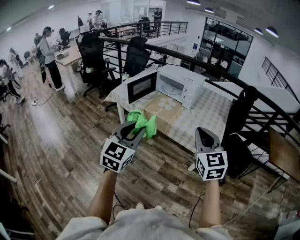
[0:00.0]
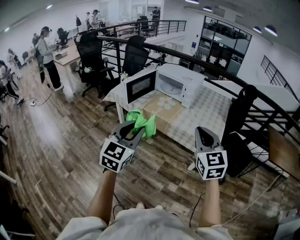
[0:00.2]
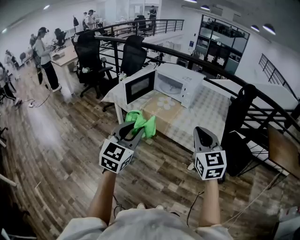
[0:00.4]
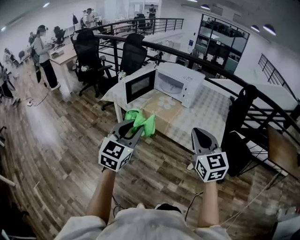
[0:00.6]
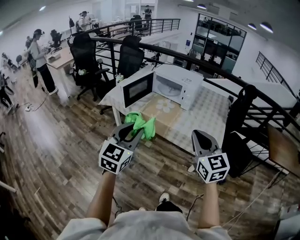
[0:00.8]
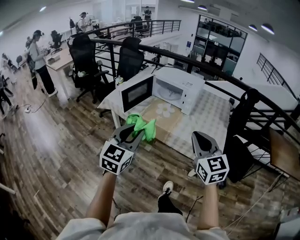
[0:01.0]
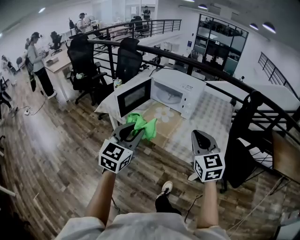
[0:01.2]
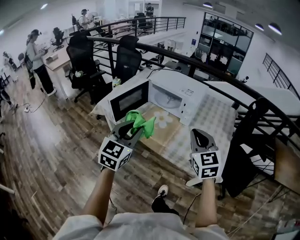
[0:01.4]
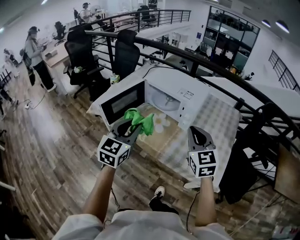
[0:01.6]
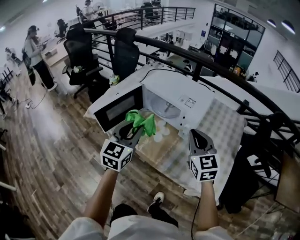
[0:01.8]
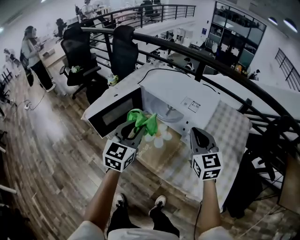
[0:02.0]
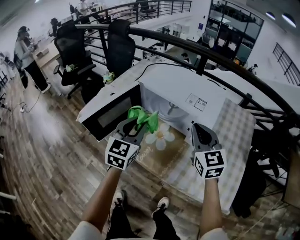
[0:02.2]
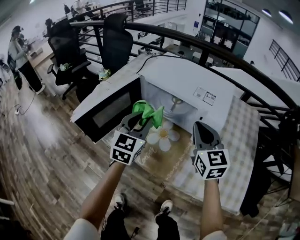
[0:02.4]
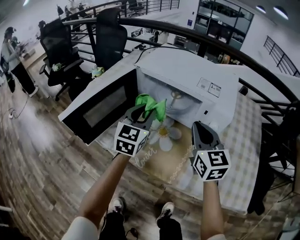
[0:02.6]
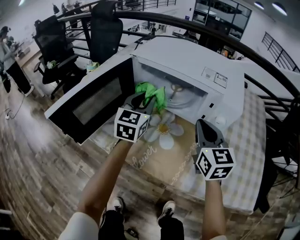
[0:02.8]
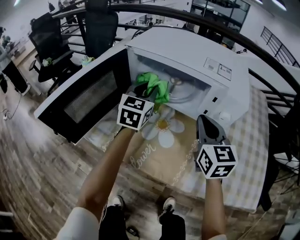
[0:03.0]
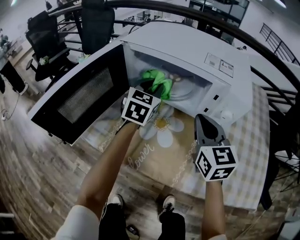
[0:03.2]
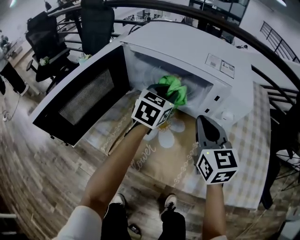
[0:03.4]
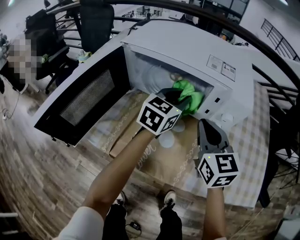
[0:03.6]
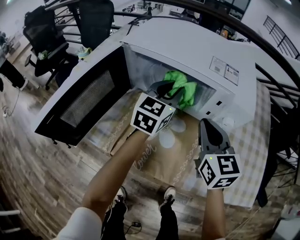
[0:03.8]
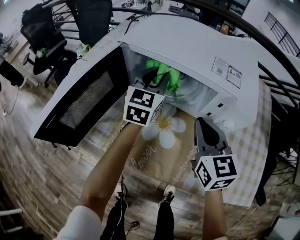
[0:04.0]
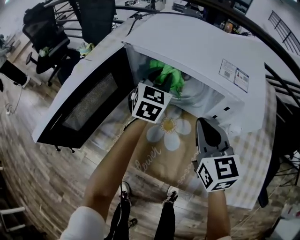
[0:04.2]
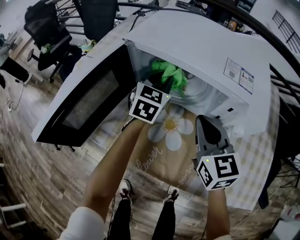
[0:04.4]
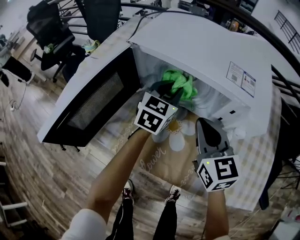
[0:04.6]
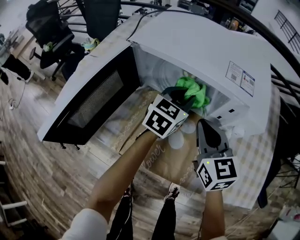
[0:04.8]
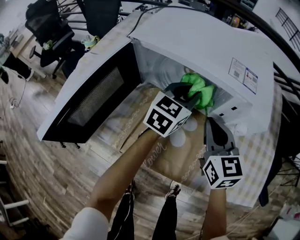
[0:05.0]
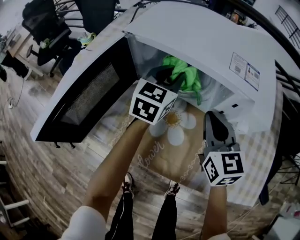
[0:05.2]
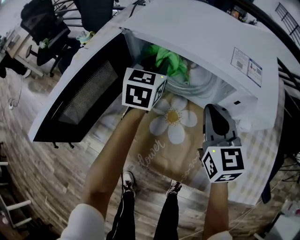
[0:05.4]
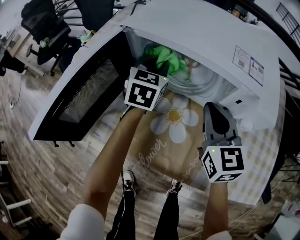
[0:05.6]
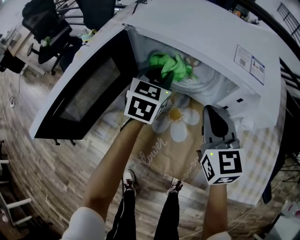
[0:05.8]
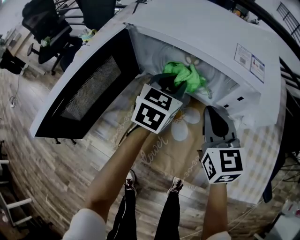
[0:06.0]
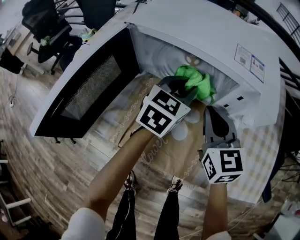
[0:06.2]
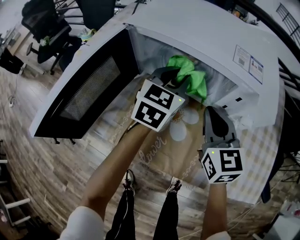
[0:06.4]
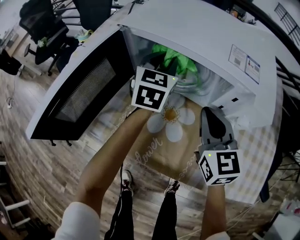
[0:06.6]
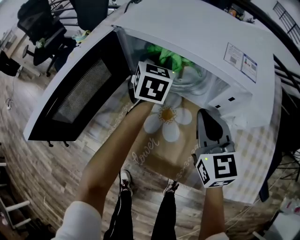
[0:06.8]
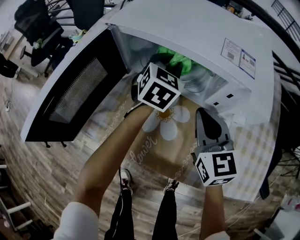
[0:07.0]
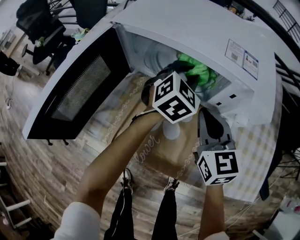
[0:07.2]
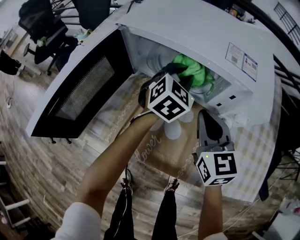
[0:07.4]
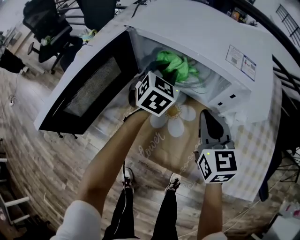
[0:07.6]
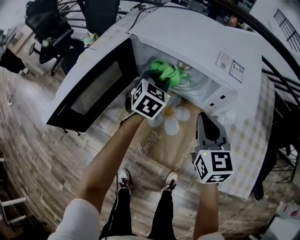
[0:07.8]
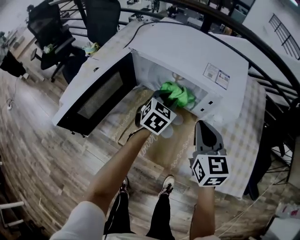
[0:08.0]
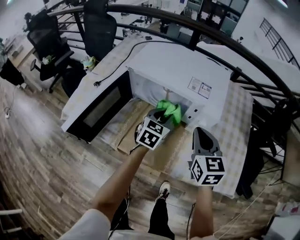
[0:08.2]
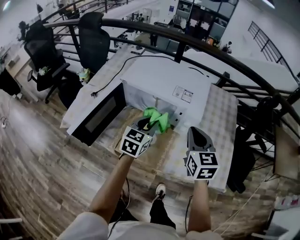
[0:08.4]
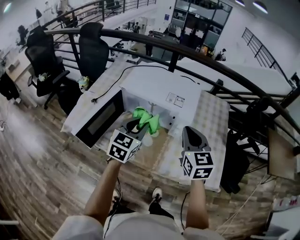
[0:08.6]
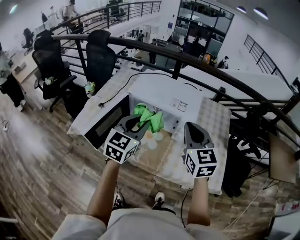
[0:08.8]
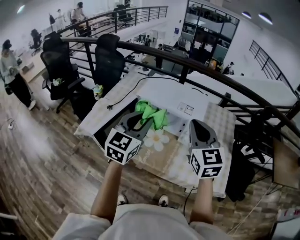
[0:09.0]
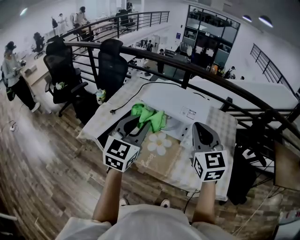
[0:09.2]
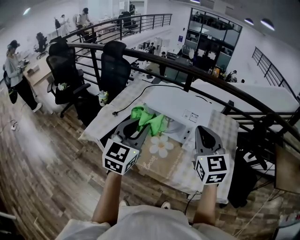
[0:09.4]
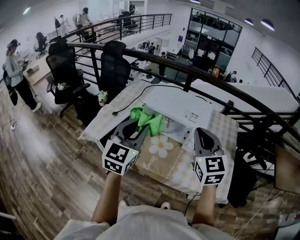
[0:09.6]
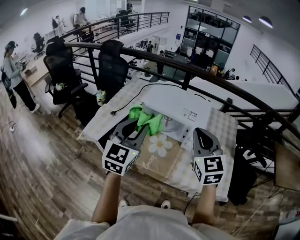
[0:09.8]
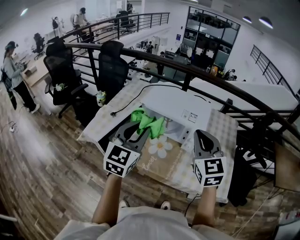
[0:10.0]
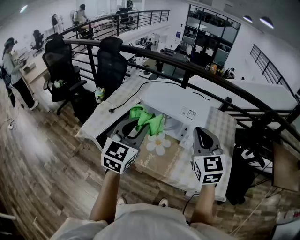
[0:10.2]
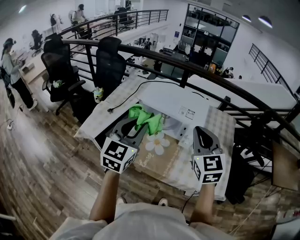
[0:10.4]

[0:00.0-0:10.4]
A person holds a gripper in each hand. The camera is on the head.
0:00.0 to 0:01.4: The grippers both shift forward by some 30 cm.
0:01.4 to 0:03.0: Both grippers travel together forward and downward, about 50 cm.
0:03.0 to 0:04.4: The right gripper travels to the left by approximately 5 cm; the left gripper travels forward by approximately 5 cm, and reaches roughly 15 cm to the right, then returns.
0:04.4 to 0:06.0: The left gripper moves left and right over roughly 10 cm, changing direction 2 times.
0:06.0 to 0:07.4: The left gripper turns by roughly 20 degrees.
0:07.4 to 0:09.0: The two grippers go about 40 cm upward and backward. The left gripper changes its angle by approximately 30 degrees.
0:09.0 to 0:10.4: There are only small adjustments of the grippers.

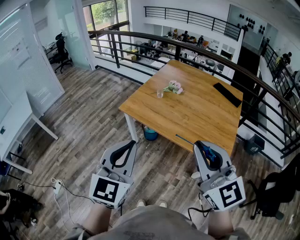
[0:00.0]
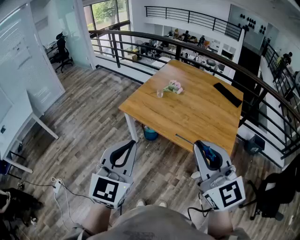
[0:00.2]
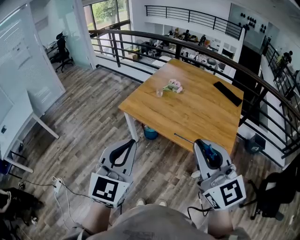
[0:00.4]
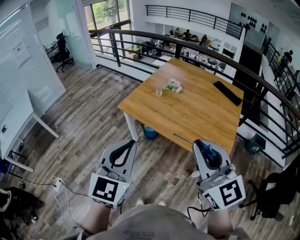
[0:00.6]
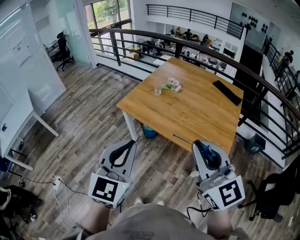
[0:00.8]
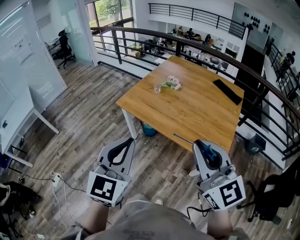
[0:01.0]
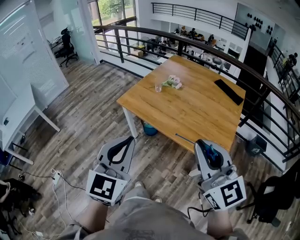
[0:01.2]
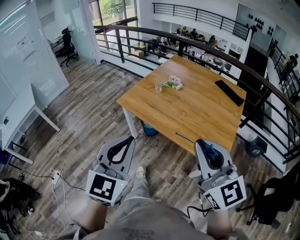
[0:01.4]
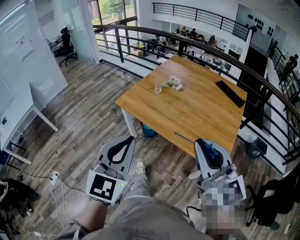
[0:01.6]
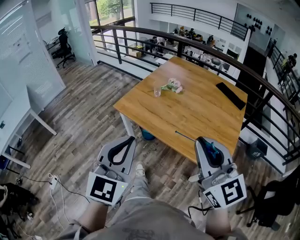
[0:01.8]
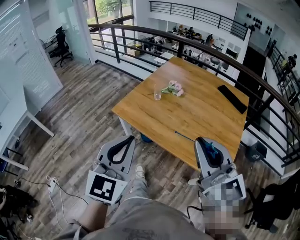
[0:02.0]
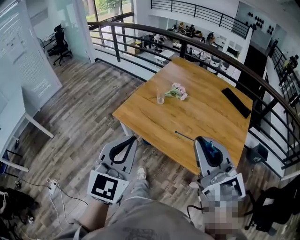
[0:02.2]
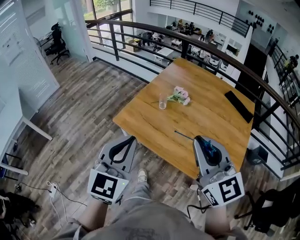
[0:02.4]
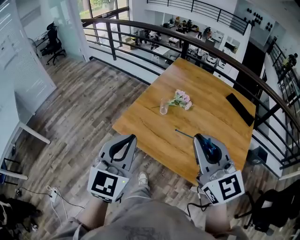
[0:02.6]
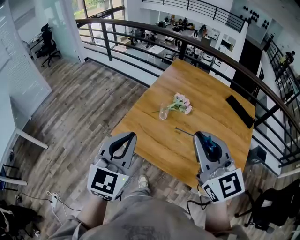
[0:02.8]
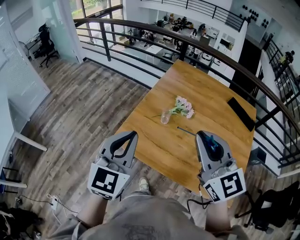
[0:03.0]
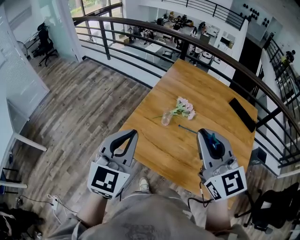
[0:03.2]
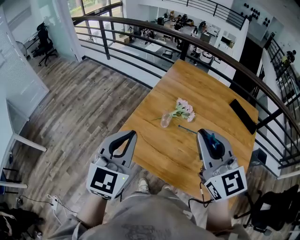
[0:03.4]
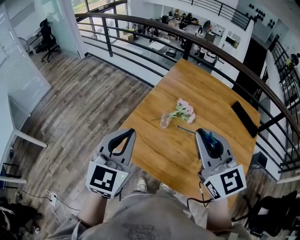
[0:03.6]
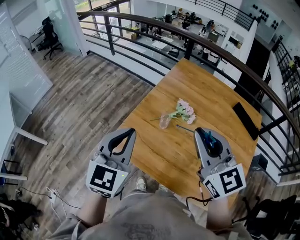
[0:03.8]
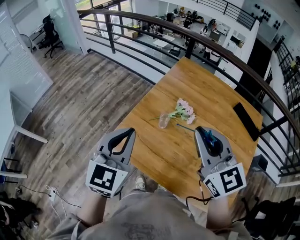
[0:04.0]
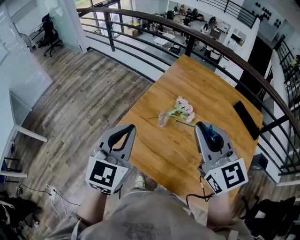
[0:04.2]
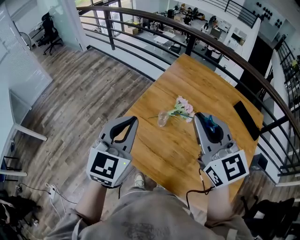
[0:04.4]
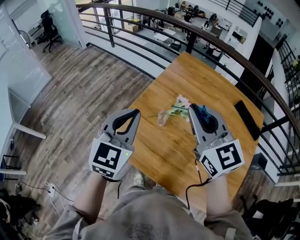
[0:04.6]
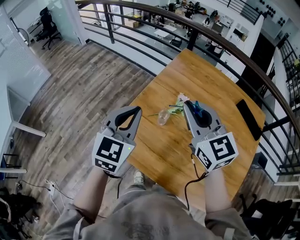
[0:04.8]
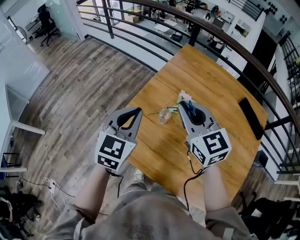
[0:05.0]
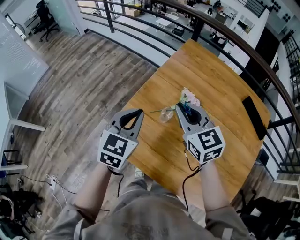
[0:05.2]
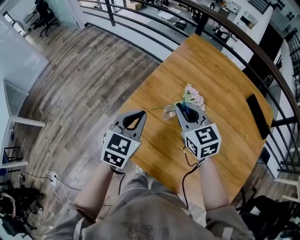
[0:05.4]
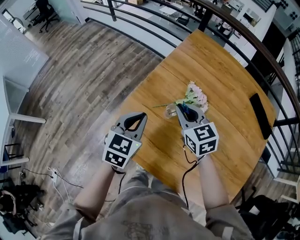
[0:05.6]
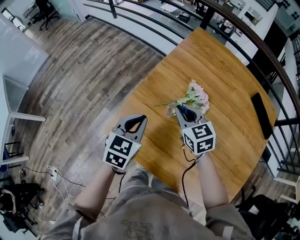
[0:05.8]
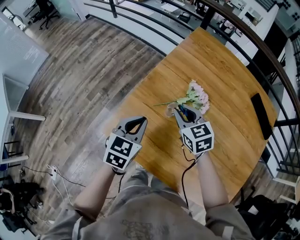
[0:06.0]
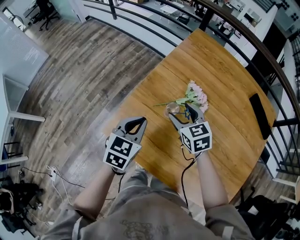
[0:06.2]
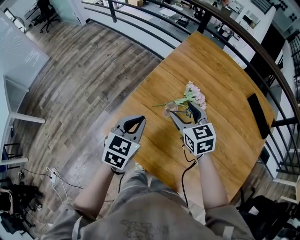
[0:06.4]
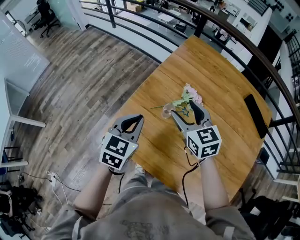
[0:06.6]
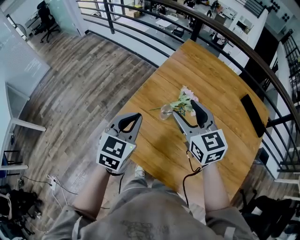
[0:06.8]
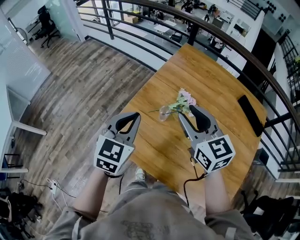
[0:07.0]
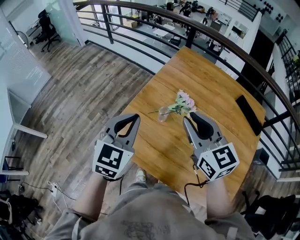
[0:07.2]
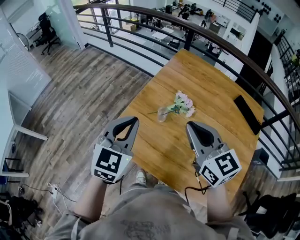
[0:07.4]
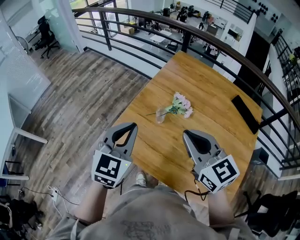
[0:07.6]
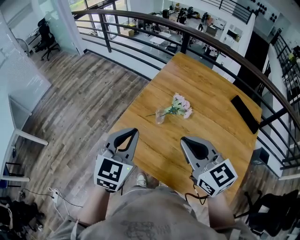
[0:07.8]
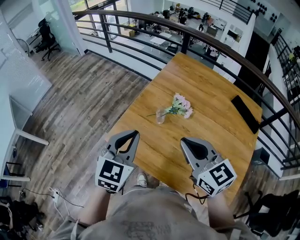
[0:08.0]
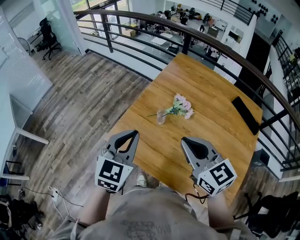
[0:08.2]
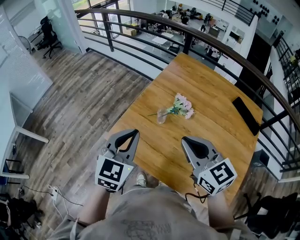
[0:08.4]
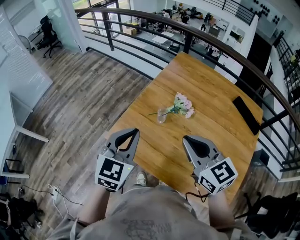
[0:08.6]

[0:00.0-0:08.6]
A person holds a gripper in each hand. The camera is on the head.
0:00.0 to 0:01.4: Both grippers travel together to the right, some 5 cm.
0:01.4 to 0:02.8: The two grippers go some 35 cm forward.
0:02.8 to 0:04.4: The grippers both shift forward by approximately 15 cm.
0:04.4 to 0:05.8: The right gripper goes approximately 30 cm downward and forward, and swivels about 30 degrees, while the left gripper is displaced downward by about 20 cm, and swivels some 30 degrees.
0:05.8 to 0:07.2: The right gripper moves upward and backward, roughly 20 cm, rotates approximately 20 degrees, and opens, then closes again. The left gripper is displaced upward by about 15 cm, and rotates about 20 degrees.
0:07.2 to 0:08.6: The two grippers go approximately 5 cm backward.

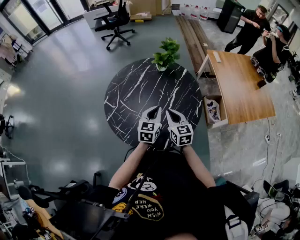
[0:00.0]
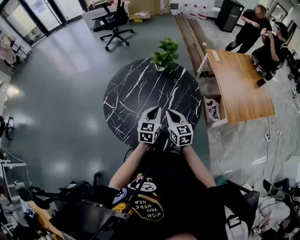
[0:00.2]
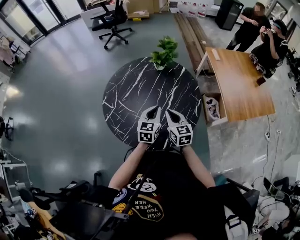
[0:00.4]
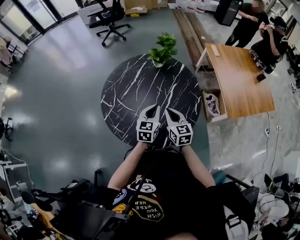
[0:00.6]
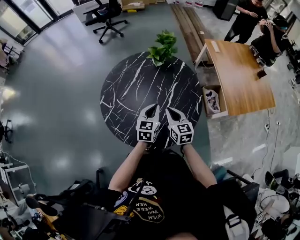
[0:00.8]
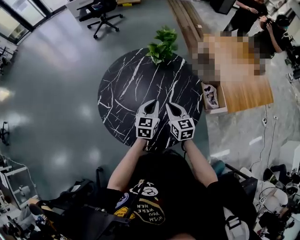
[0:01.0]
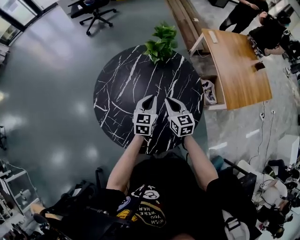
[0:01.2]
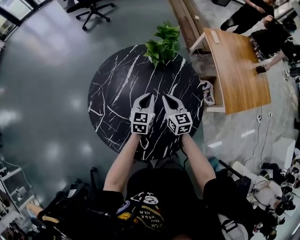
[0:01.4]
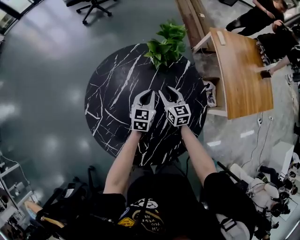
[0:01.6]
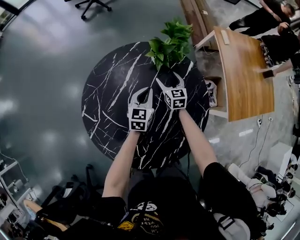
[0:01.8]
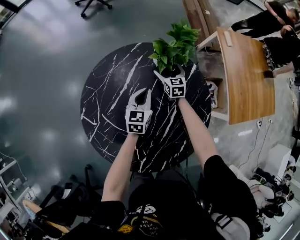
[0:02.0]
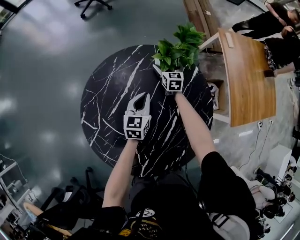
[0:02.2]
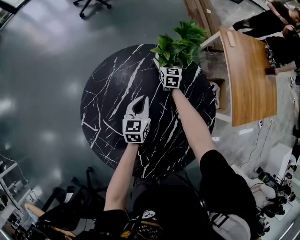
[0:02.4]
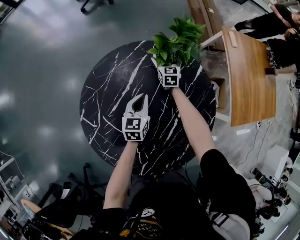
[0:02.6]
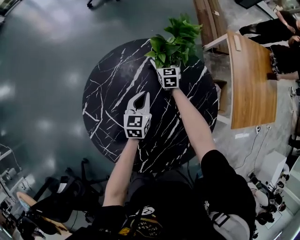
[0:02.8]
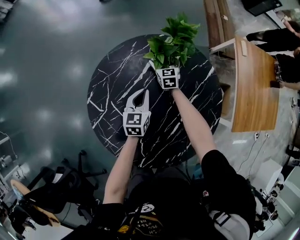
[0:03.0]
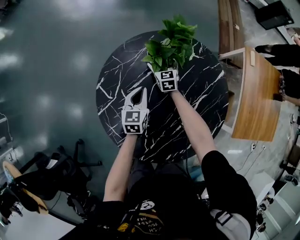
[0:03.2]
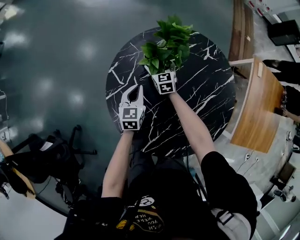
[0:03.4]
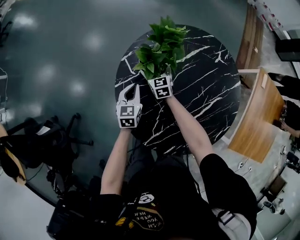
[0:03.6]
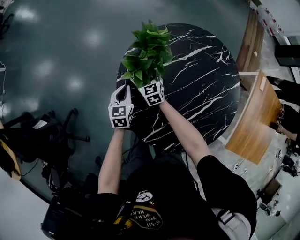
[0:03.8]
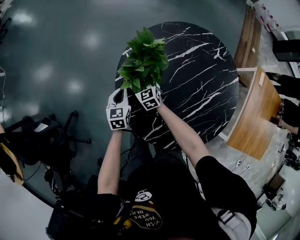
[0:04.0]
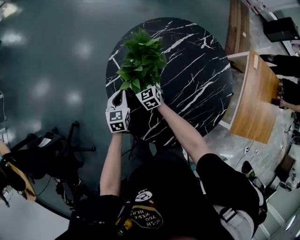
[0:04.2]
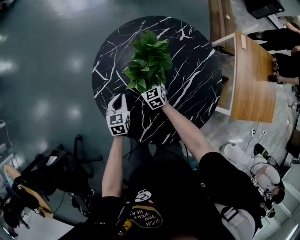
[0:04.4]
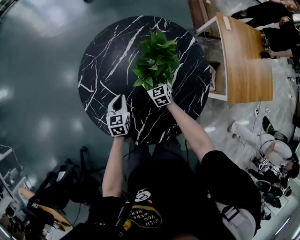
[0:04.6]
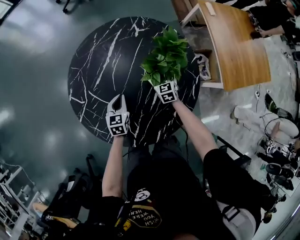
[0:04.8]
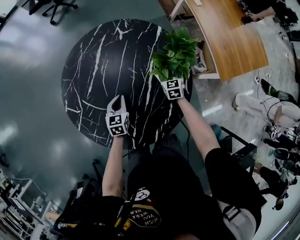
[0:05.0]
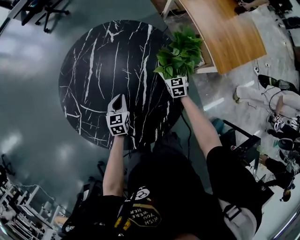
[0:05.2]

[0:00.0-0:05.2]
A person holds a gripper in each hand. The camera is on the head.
0:00.0 to 0:01.8: The two grippers go approximately 35 cm forward and downward. The right gripper opens its fingers.
0:01.8 to 0:03.4: The left gripper moves some 25 cm, and changes its angle by roughly 30 degrees. The right gripper moves some 30 cm, and turns by some 30 degrees.
0:03.4 to 0:05.2: The right gripper moves some 50 cm, and turns by about 40 degrees; the left gripper moves approximately 25 cm, and rotates approximately 30 degrees.
